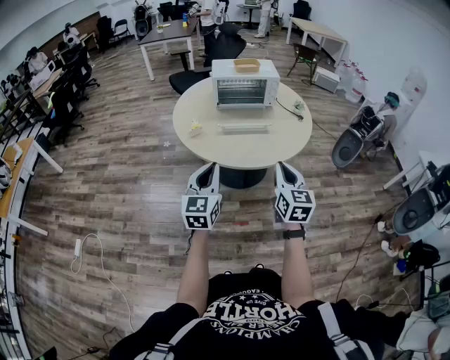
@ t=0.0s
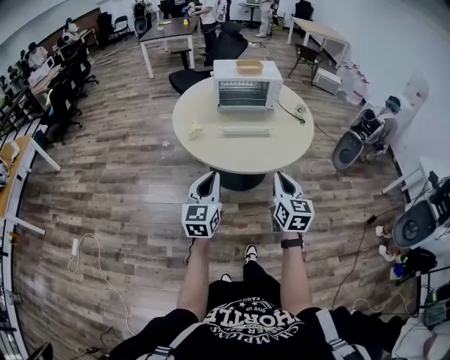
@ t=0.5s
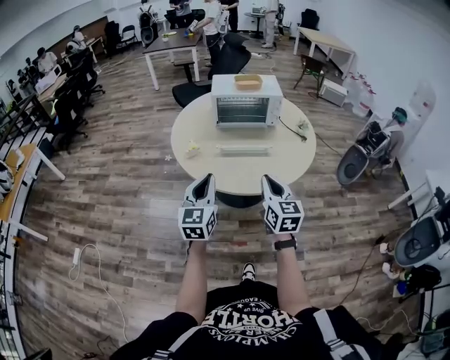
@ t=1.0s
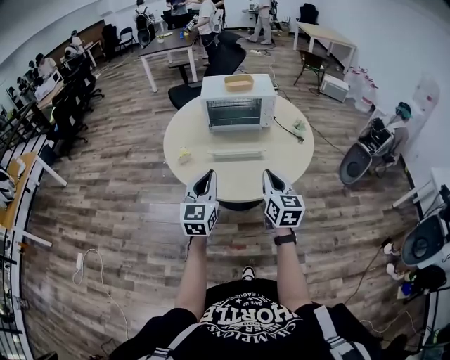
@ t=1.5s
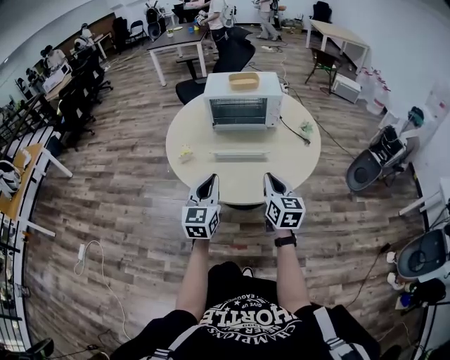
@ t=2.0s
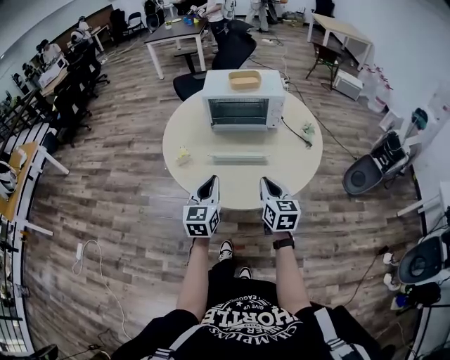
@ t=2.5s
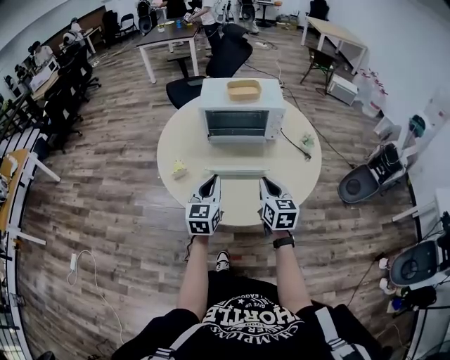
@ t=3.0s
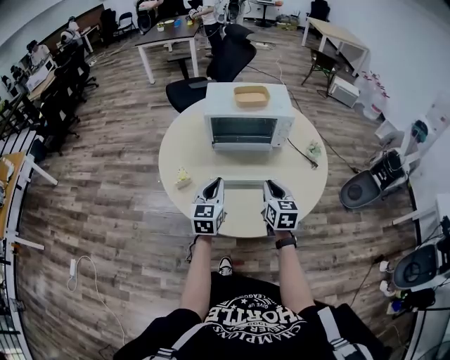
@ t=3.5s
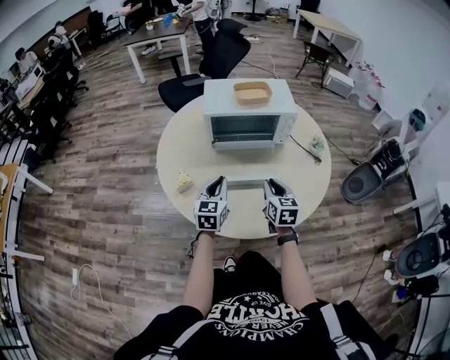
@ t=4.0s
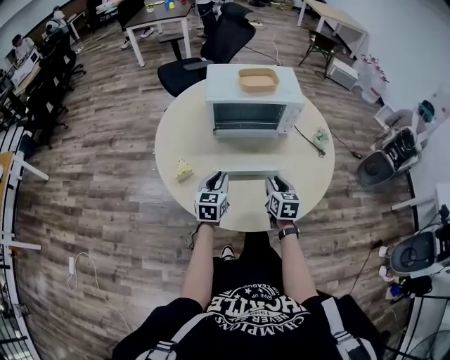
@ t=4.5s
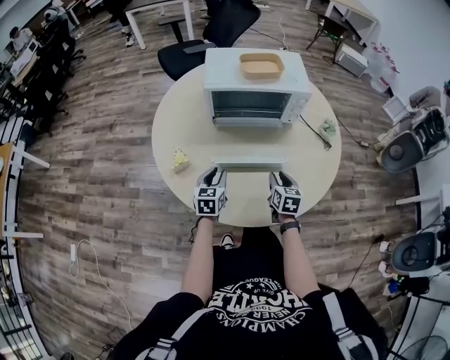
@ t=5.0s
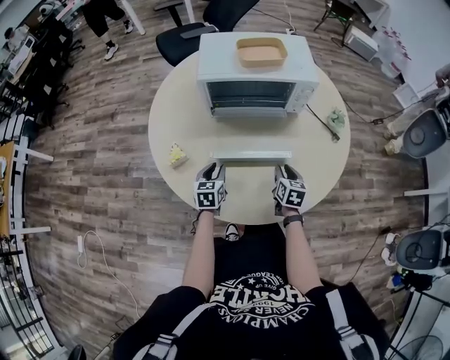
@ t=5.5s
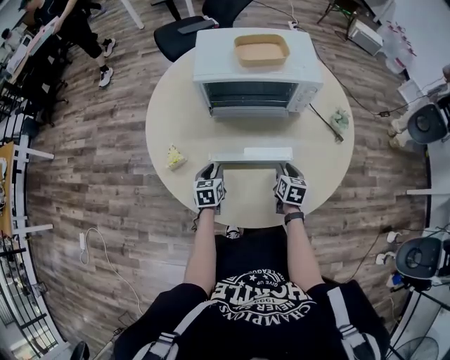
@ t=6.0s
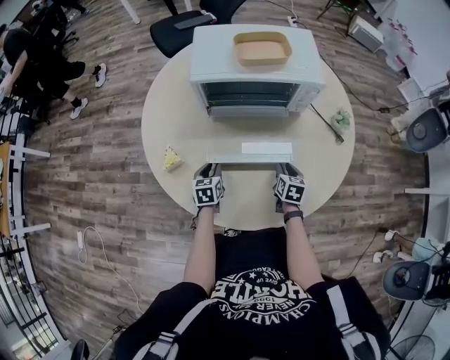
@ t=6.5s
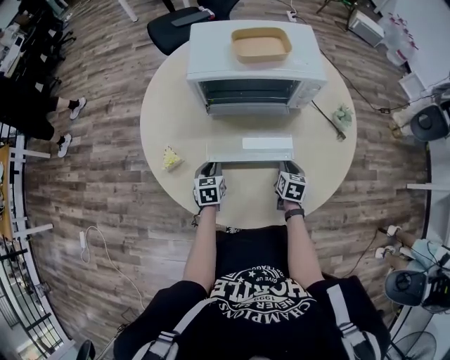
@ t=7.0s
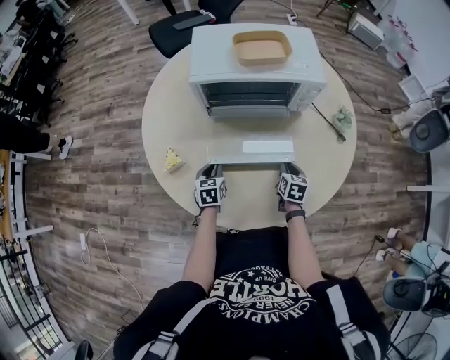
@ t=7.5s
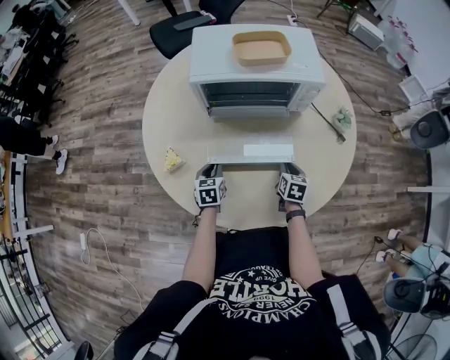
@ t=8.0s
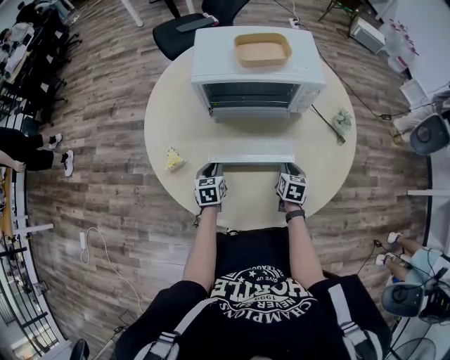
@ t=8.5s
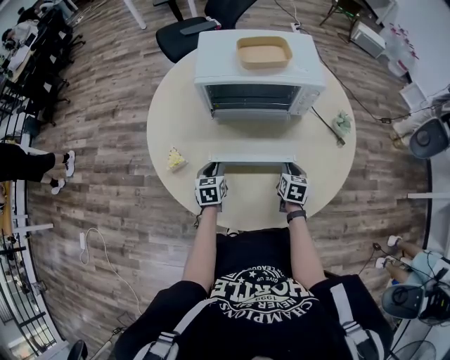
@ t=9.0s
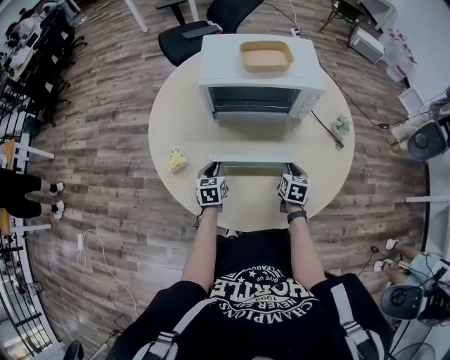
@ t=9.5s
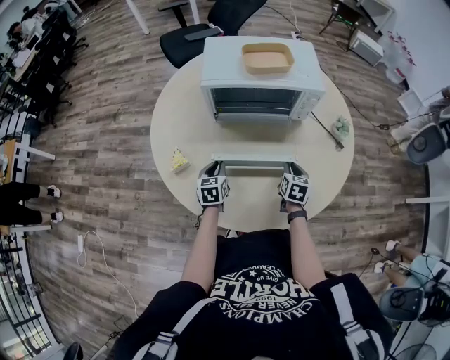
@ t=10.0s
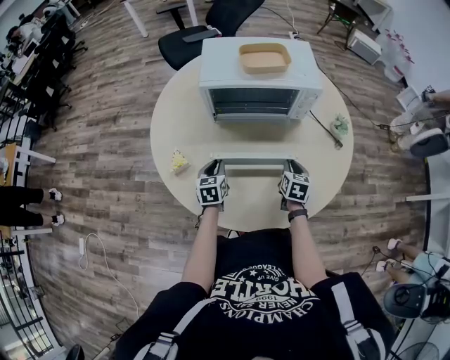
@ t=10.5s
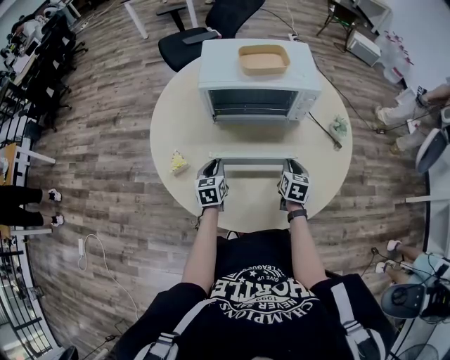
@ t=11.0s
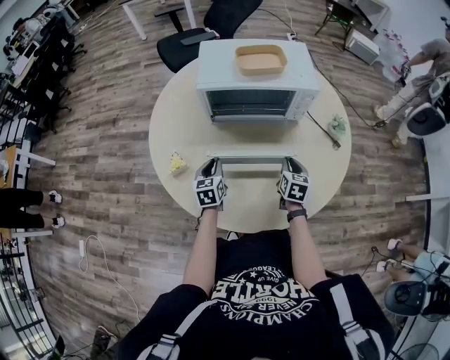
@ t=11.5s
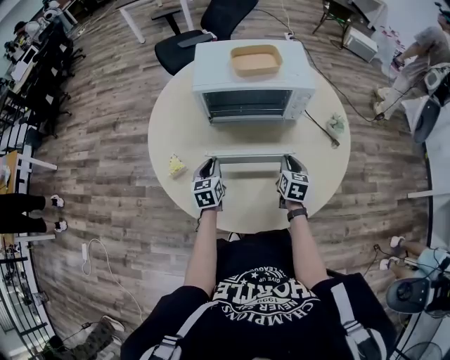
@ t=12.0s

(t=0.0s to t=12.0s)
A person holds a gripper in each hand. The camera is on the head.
t=0.0s - t=2.0s: The right gripper moves forward, about 20 cm; the left gripper moves forward and to the right, some 20 cm.
t=2.0s - t=4.0s: Both grippers move forward and downward, about 25 cm.
t=4.0s - t=6.0s: The right gripper shifts approximately 20 cm downward, forward and to the right, and changes its angle by about 20 degrees. The left gripper is displaced downward by approximately 20 cm, changes its angle by about 30 degrees, and opens.
t=6.0s - t=10.0s: The grippers stay close to where they were, moving slightly.
t=10.0s - t=12.0s: The grippers make only small movements.

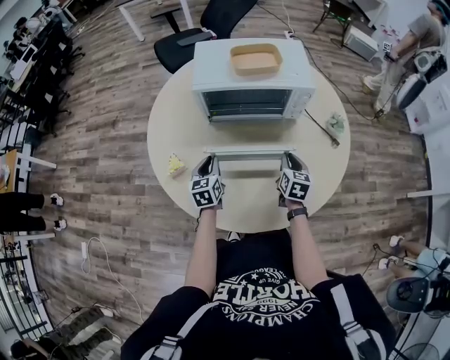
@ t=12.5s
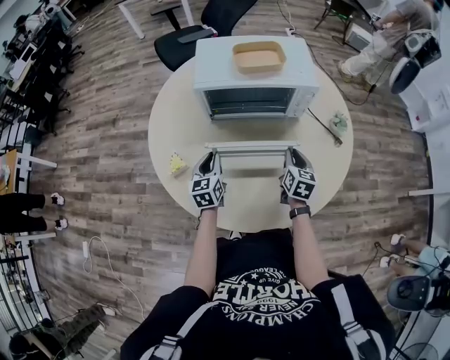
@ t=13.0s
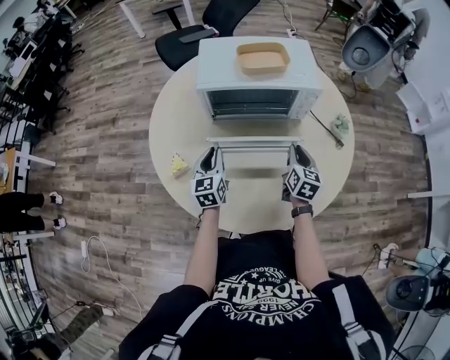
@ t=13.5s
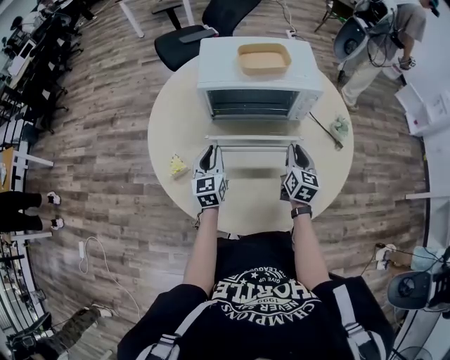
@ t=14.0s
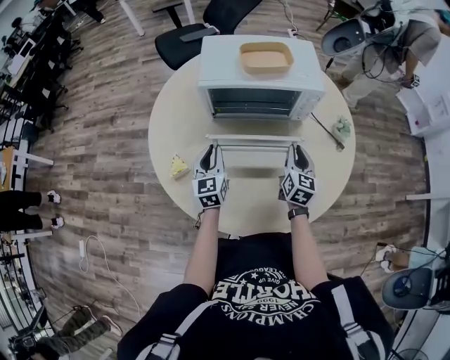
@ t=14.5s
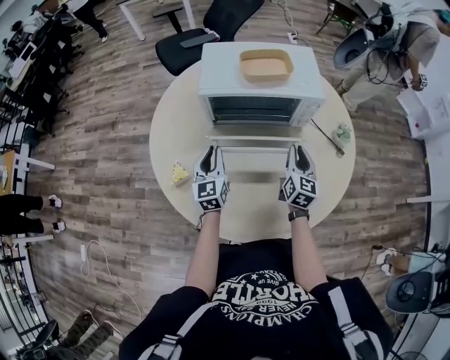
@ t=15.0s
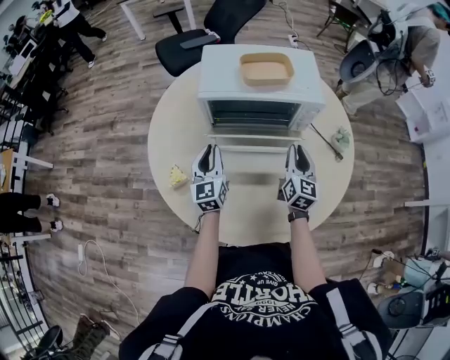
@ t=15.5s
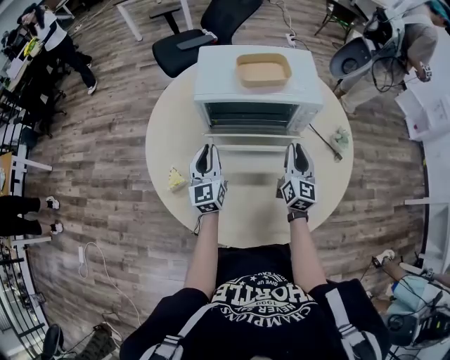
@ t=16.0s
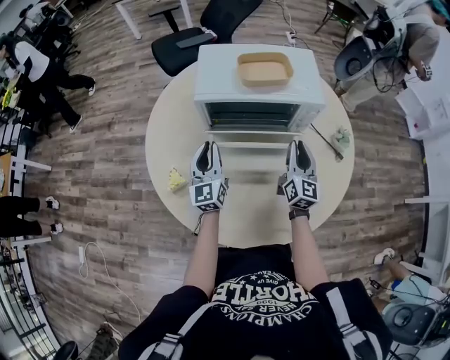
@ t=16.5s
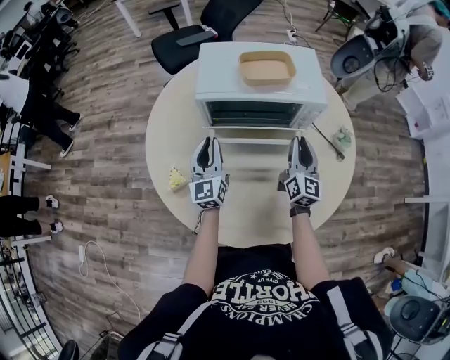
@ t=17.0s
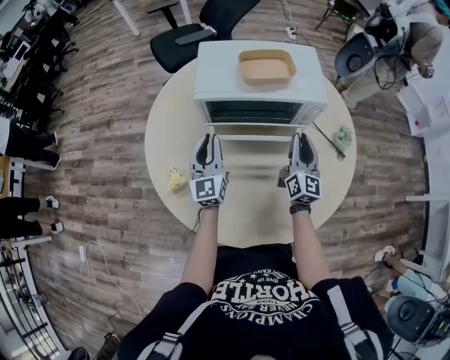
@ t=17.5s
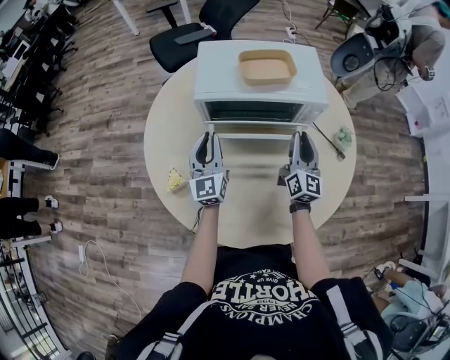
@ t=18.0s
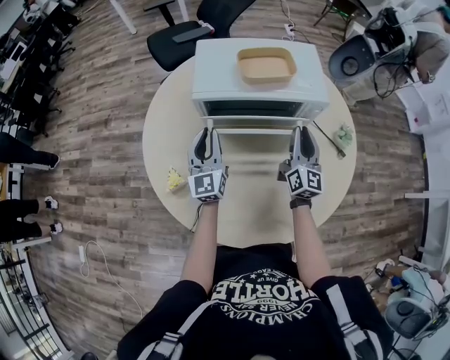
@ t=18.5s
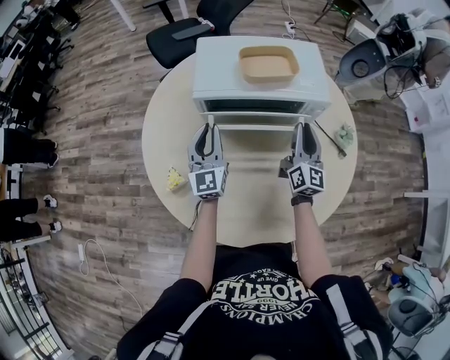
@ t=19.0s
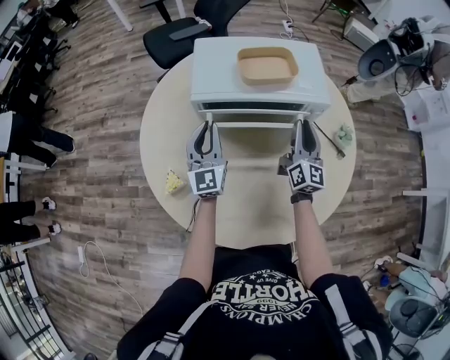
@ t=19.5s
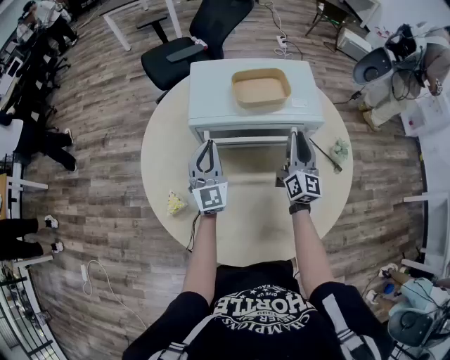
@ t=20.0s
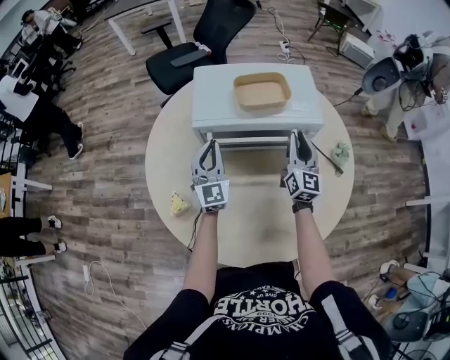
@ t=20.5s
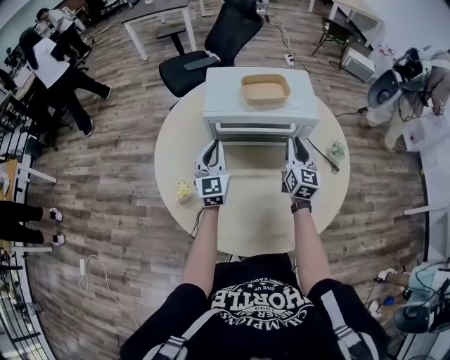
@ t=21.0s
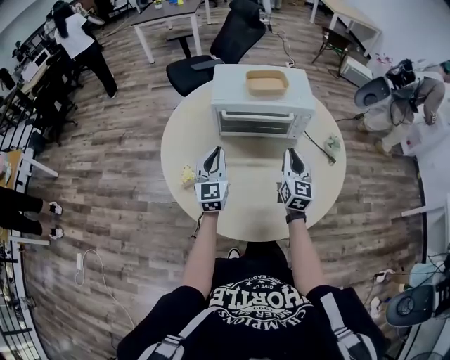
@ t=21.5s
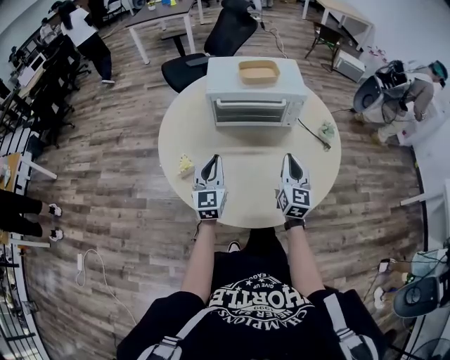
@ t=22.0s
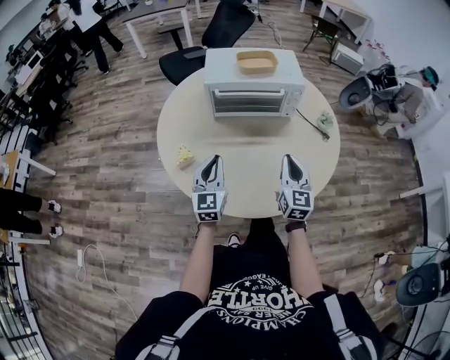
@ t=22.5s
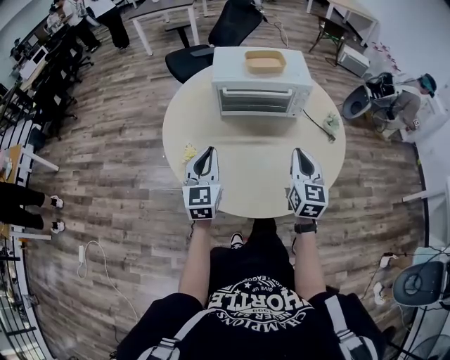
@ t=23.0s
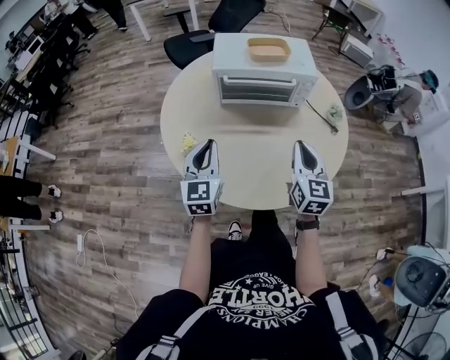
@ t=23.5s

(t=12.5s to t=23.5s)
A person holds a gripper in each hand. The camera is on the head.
t=12.5s - t=14.5s: The right gripper moves approximately 5 cm. The left gripper changes place by roughly 5 cm.
t=14.5s - t=16.0s: The right gripper ends up roughly 5 cm from where it was, while the left gripper shifts by about 5 cm.
t=16.0s - t=18.0s: The grippers stay close to where they were, moving slightly.
t=18.0s - t=20.0s: The left gripper moves roughly 5 cm; the right gripper heads forward, covering about 5 cm.
t=20.0s - t=21.5s: The grippers both shift backward by roughly 15 cm.
t=21.5s - t=23.5s: The right gripper heads backward and upward, covering approximately 15 cm. Meanwhile the left gripper goes roughly 10 cm backward.

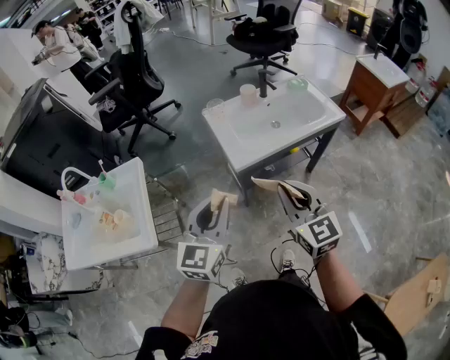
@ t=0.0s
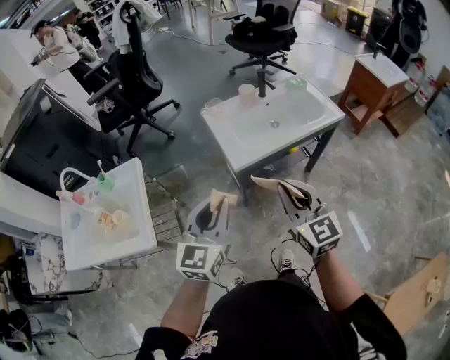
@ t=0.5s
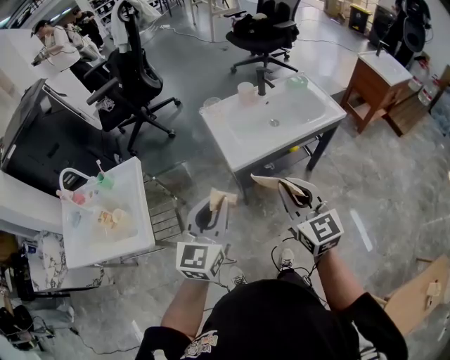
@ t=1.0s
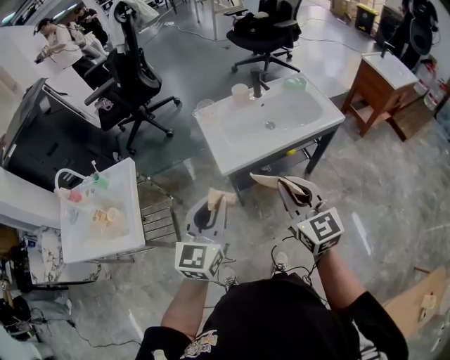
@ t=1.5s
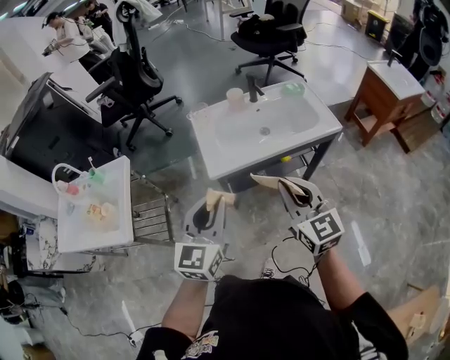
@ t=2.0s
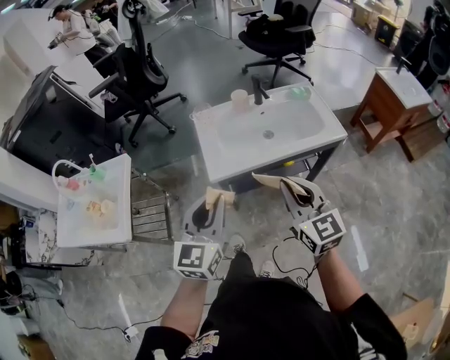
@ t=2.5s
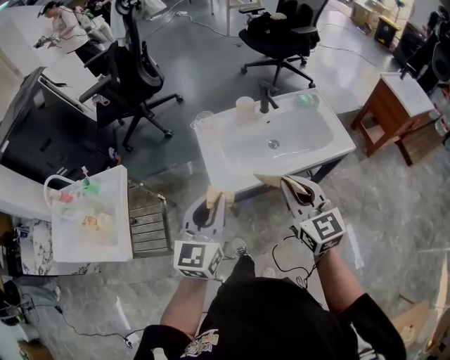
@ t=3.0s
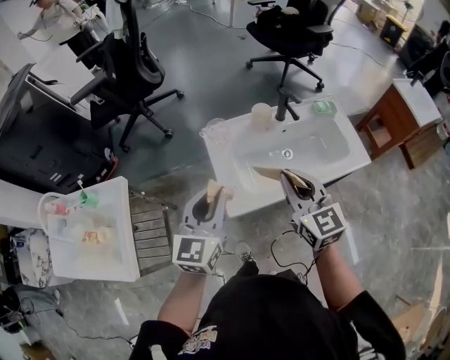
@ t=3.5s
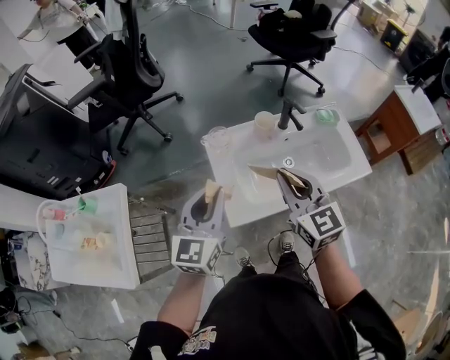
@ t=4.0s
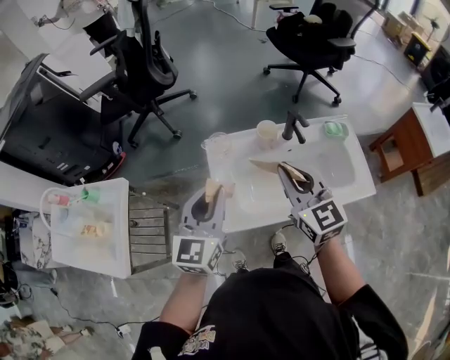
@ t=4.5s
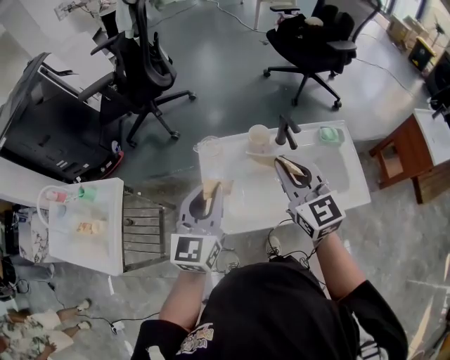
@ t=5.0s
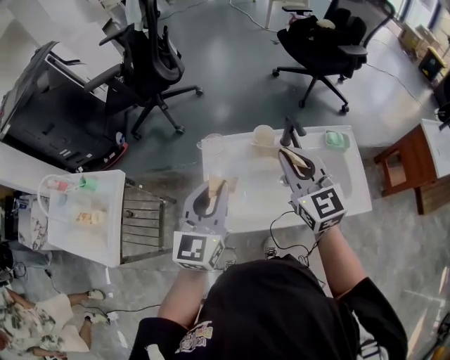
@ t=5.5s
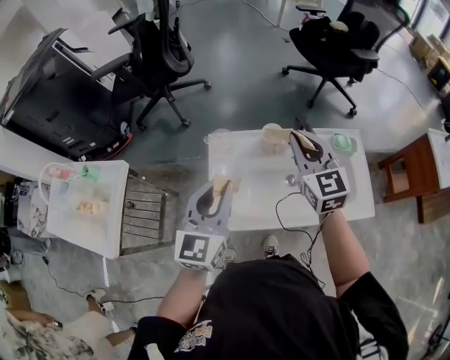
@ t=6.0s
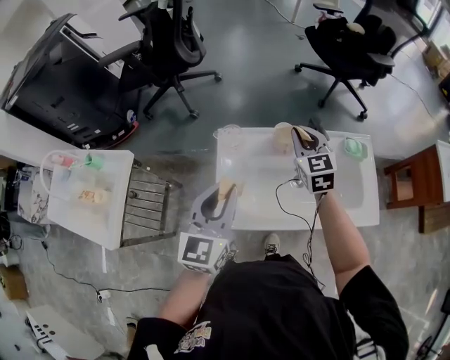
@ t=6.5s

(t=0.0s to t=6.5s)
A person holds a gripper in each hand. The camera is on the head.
t=0.0s - t=2.0s: Both grippers move to the right, about 15 cm.
t=2.0s - t=4.5s: Both grippers travel together forward, about 35 cm.
t=4.5s - t=6.5s: The right gripper travels forward and downward by approximately 20 cm.
